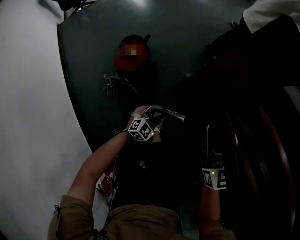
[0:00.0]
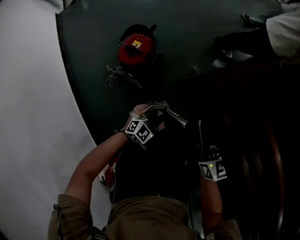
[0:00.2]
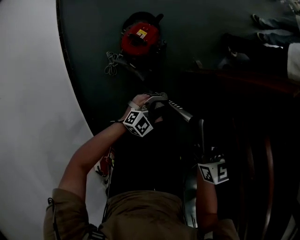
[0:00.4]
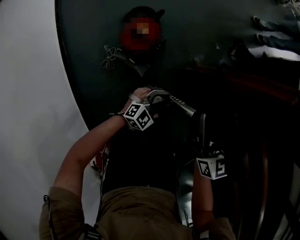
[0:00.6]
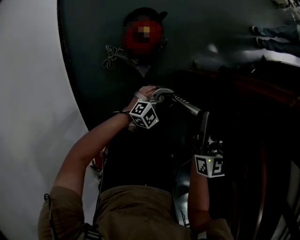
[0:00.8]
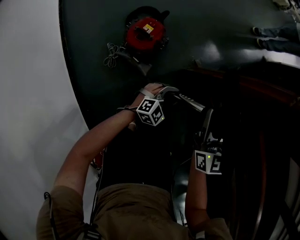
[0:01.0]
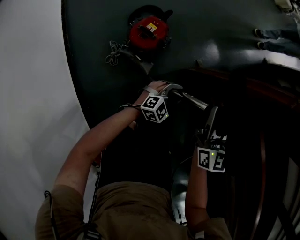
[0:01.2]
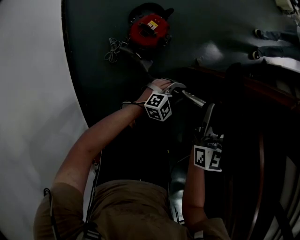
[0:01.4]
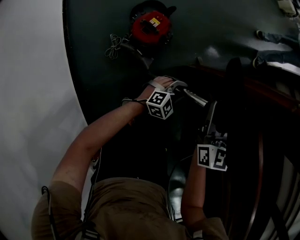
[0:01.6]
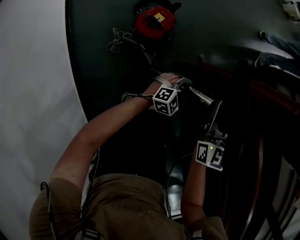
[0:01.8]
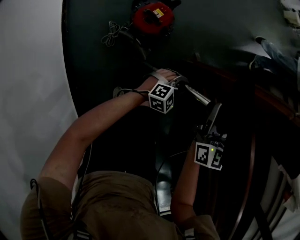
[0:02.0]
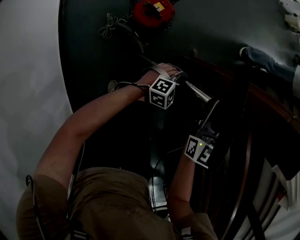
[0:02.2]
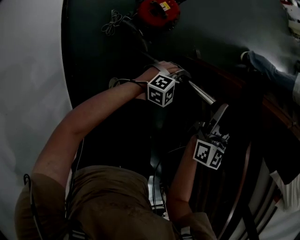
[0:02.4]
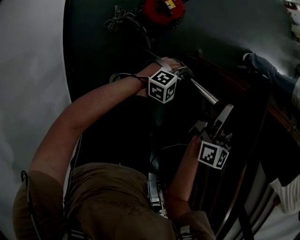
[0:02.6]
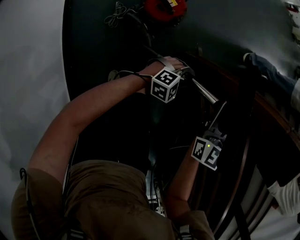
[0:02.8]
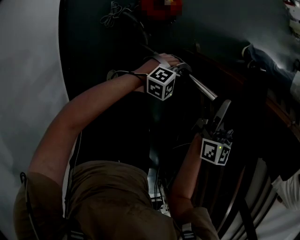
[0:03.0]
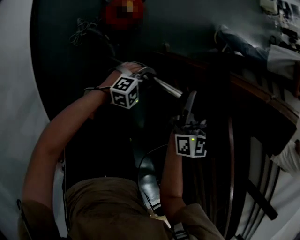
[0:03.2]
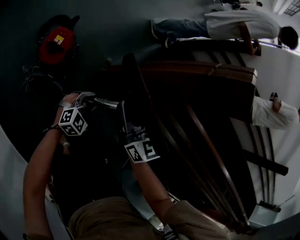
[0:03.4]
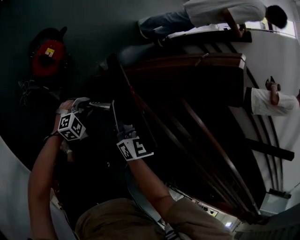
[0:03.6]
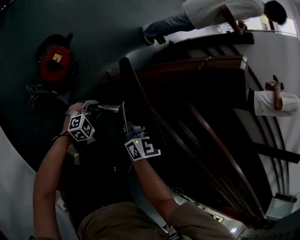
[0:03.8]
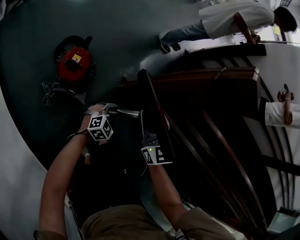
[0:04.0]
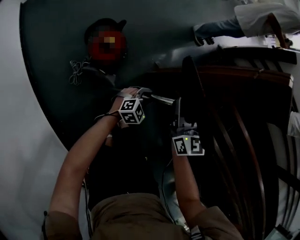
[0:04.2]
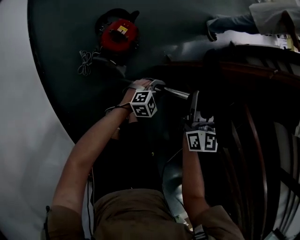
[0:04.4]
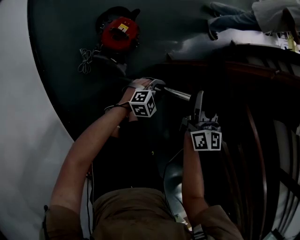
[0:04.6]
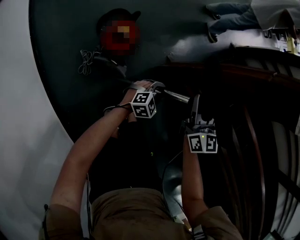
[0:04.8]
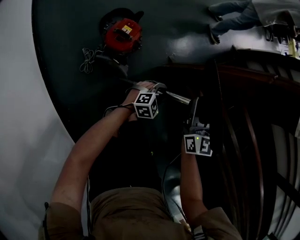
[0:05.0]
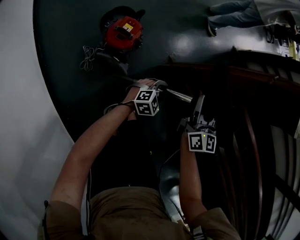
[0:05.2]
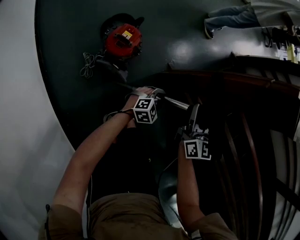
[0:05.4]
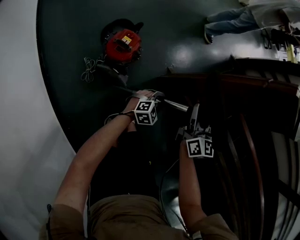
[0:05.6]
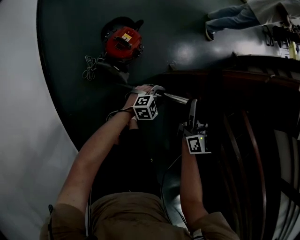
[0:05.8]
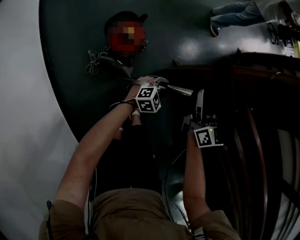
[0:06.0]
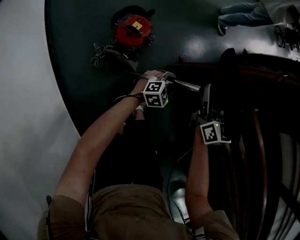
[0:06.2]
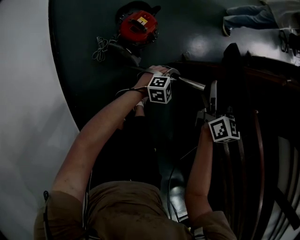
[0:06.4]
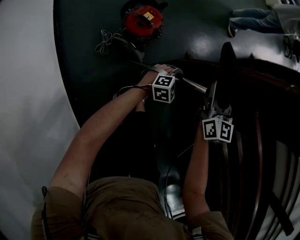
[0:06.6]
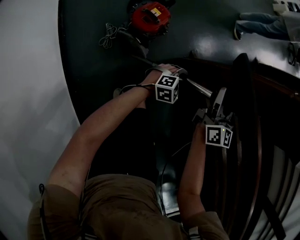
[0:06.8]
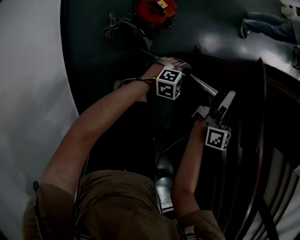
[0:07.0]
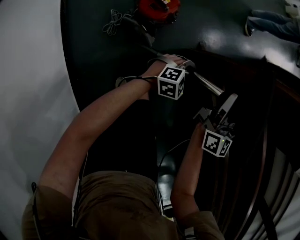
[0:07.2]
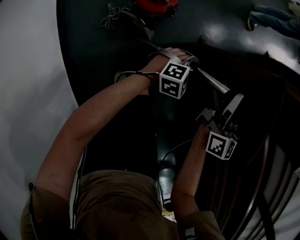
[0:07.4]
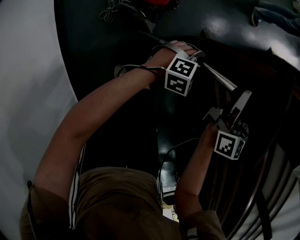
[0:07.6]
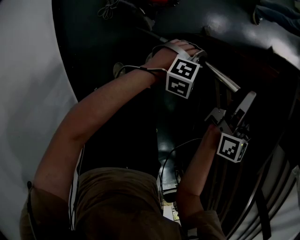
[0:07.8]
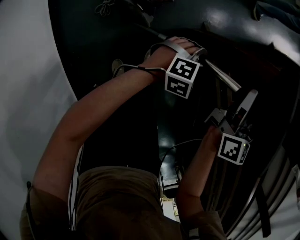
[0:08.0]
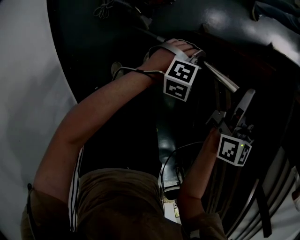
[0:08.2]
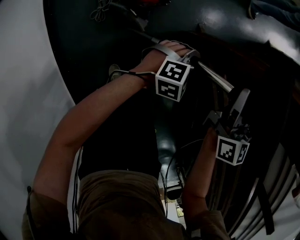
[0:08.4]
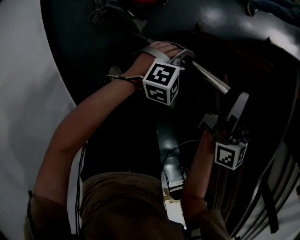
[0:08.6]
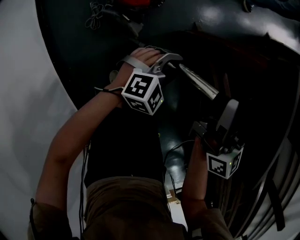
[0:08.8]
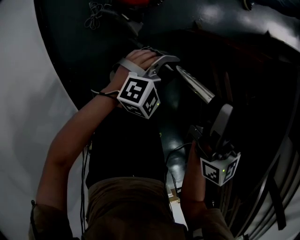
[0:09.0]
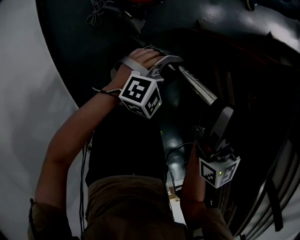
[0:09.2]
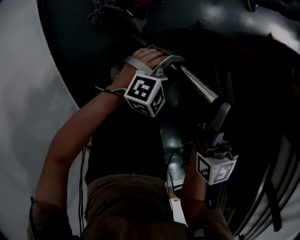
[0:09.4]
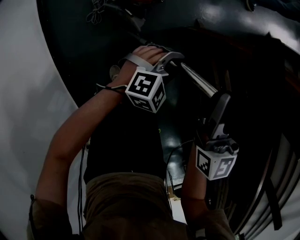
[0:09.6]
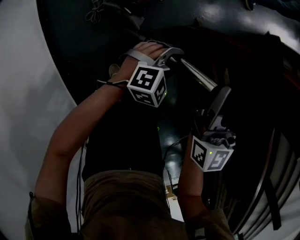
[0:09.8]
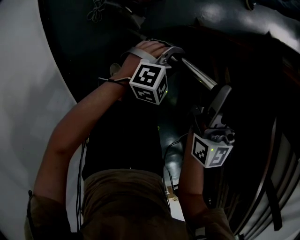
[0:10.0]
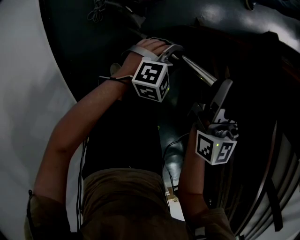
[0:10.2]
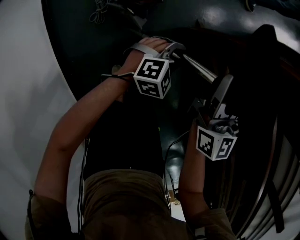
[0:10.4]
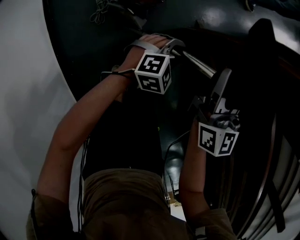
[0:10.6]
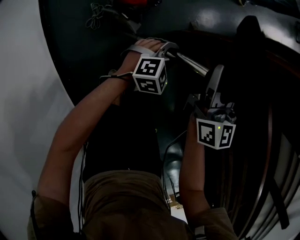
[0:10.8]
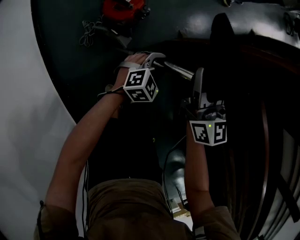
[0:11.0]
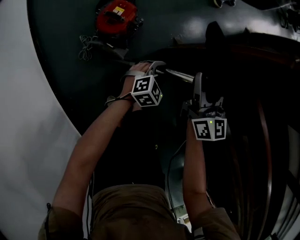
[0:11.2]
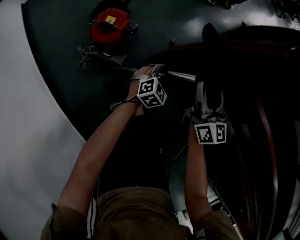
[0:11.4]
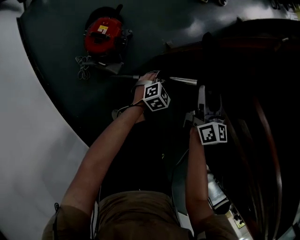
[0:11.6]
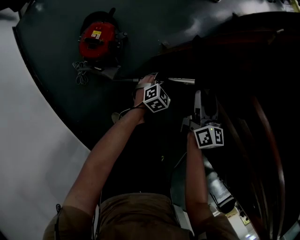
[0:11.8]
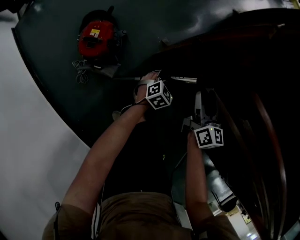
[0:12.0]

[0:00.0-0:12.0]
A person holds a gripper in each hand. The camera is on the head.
0:00.0 to 0:01.6: The right gripper heads to the left and forward, covering approximately 20 cm; the left gripper shifts some 10 cm forward and to the left.
0:01.6 to 0:06.0: The grippers stay close to where they were, moving slightly.
0:06.0 to 0:07.6: The grippers stay close to where they were, moving slightly.
0:07.6 to 0:09.0: The right gripper goes about 5 cm to the left; the left gripper shifts by some 5 cm.
0:09.0 to 0:10.4: The grippers stay close to where they were, moving slightly.
0:10.4 to 0:12.0: The right gripper moves to the right and downward, some 25 cm, turns by about 30 degrees, and opens its fingers. The left gripper goes roughly 20 cm to the right, forward and downward.

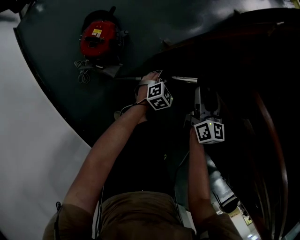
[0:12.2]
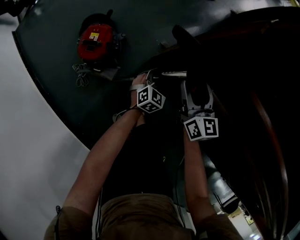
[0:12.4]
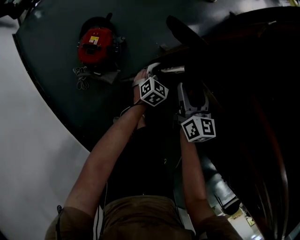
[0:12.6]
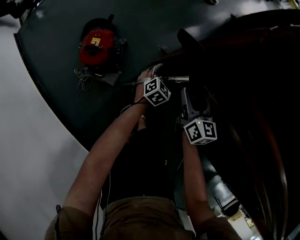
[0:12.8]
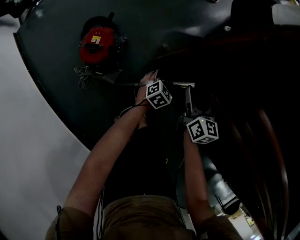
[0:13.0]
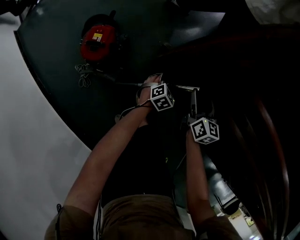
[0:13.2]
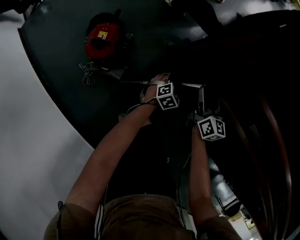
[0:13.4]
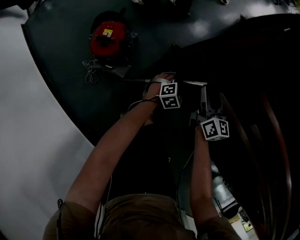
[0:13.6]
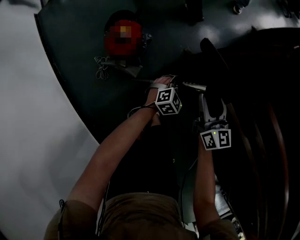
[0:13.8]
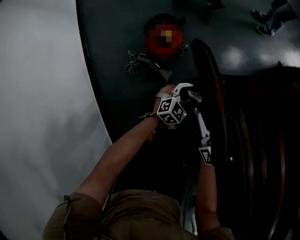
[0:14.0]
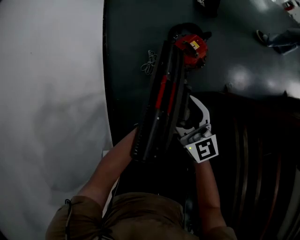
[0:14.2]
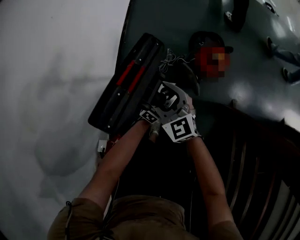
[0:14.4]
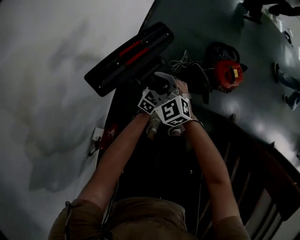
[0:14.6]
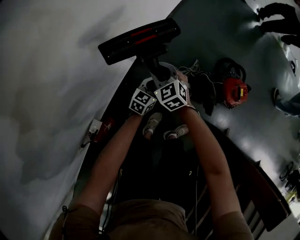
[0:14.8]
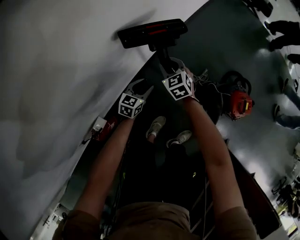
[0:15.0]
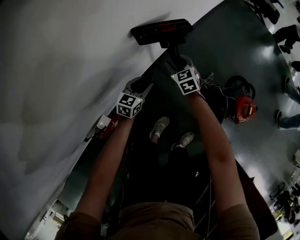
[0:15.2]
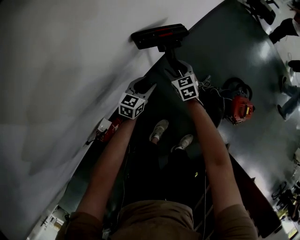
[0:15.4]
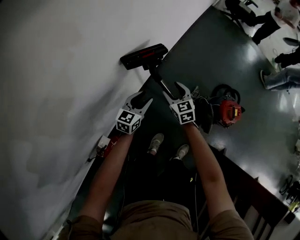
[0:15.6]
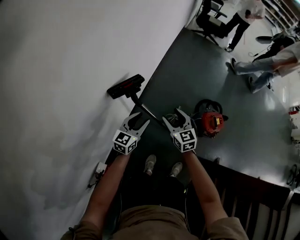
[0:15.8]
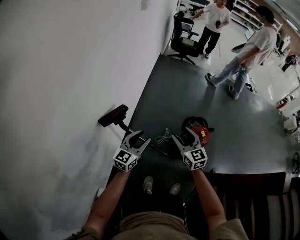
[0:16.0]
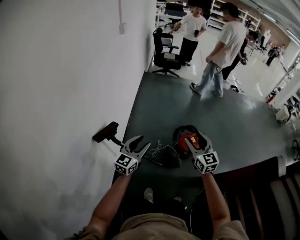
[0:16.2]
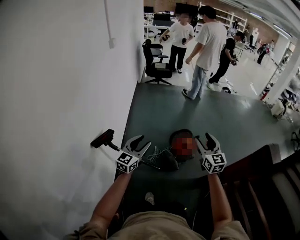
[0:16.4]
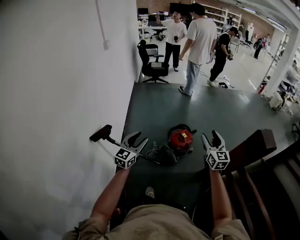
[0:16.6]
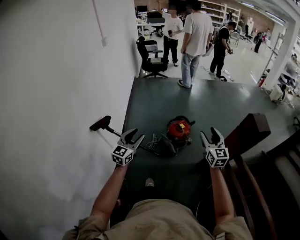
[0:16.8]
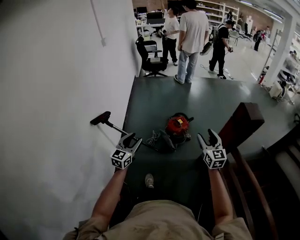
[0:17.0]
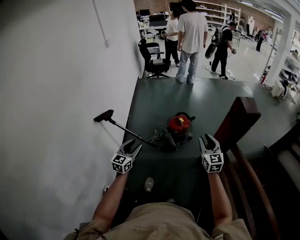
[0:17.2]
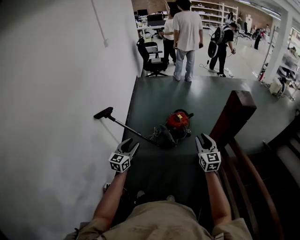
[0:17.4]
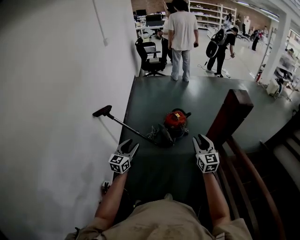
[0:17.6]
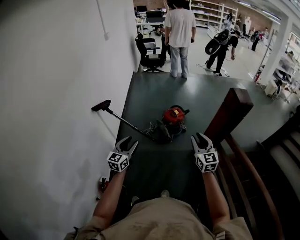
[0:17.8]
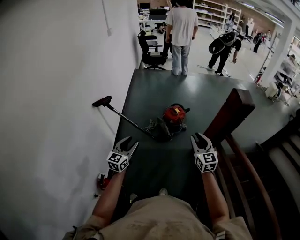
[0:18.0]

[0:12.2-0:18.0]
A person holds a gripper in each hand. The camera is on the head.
0:12.2 to 0:13.6: The left gripper travels to the left and back again, about 5 cm each way, and opens, then closes once more.
0:13.6 to 0:15.0: Both grippers are carried about 1 m. The right gripper turns by some 120 degrees, and closes its fingers. The left gripper changes its angle by about 120 degrees.
0:15.0 to 0:16.6: The right gripper changes place by some 90 cm, tilts its fingers about 40 degrees upward, and opens up. Meanwhile the left gripper heads upward, covering roughly 60 cm, and changes its angle by some 50 degrees.
0:16.6 to 0:18.0: The two grippers go roughly 35 cm backward. The right gripper closes up.

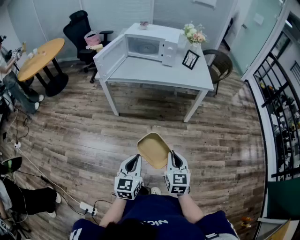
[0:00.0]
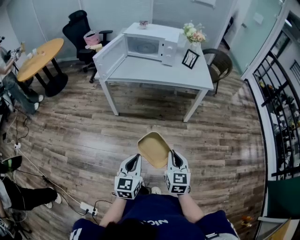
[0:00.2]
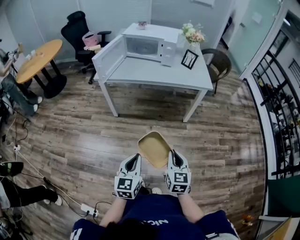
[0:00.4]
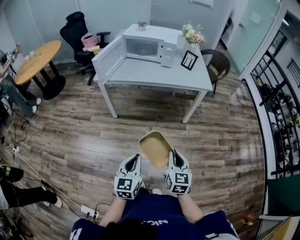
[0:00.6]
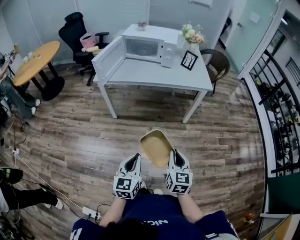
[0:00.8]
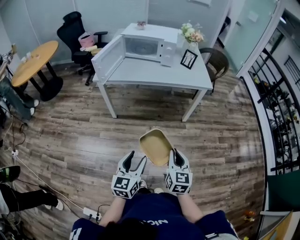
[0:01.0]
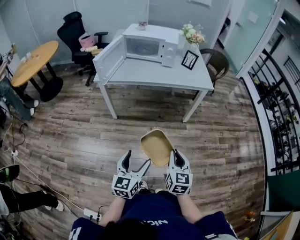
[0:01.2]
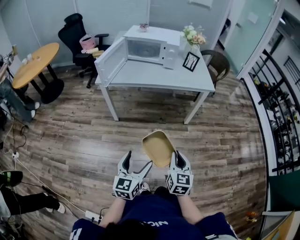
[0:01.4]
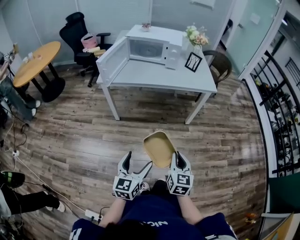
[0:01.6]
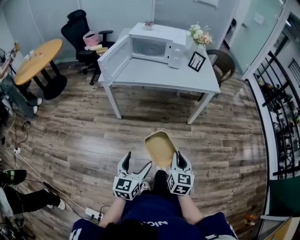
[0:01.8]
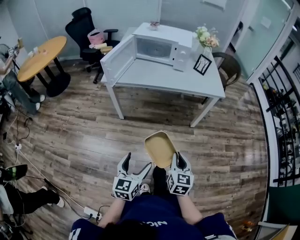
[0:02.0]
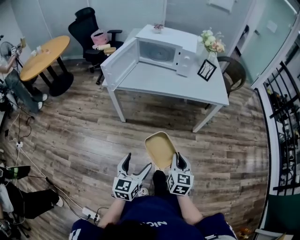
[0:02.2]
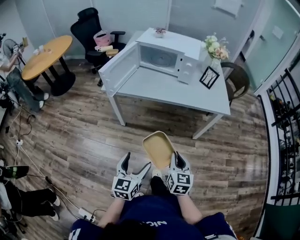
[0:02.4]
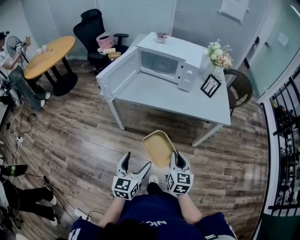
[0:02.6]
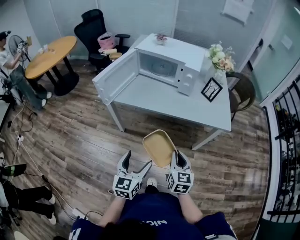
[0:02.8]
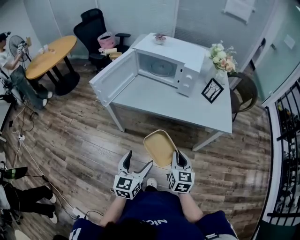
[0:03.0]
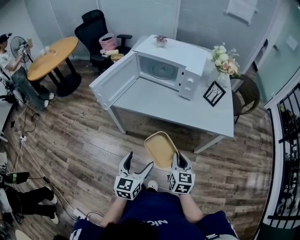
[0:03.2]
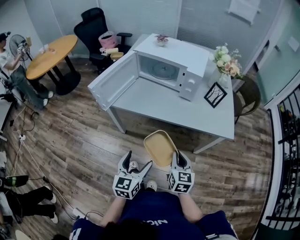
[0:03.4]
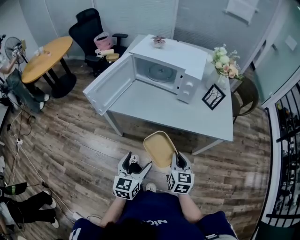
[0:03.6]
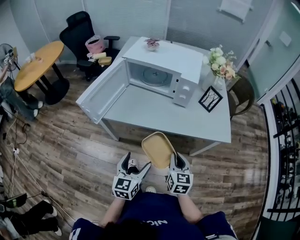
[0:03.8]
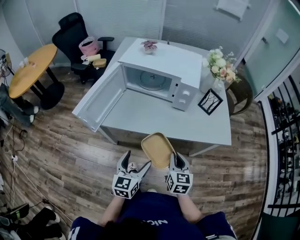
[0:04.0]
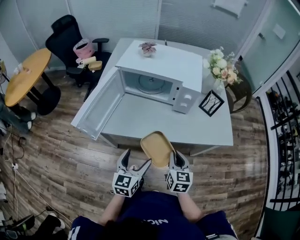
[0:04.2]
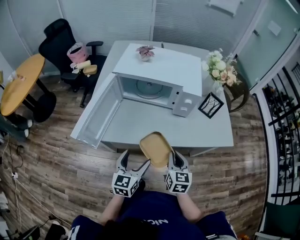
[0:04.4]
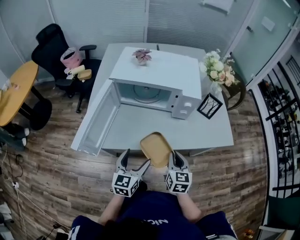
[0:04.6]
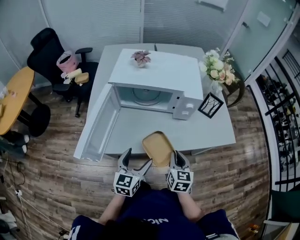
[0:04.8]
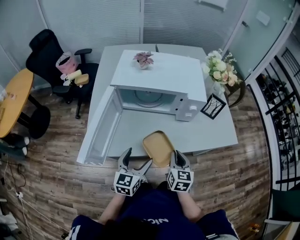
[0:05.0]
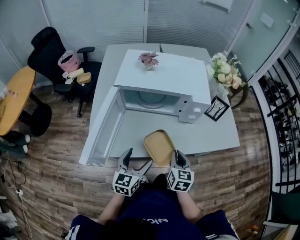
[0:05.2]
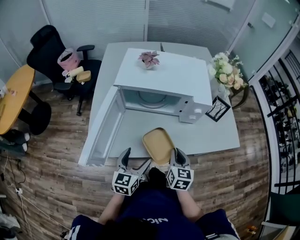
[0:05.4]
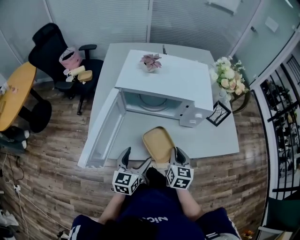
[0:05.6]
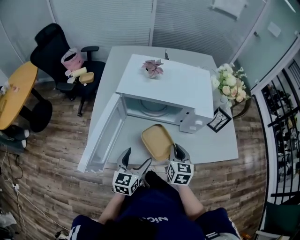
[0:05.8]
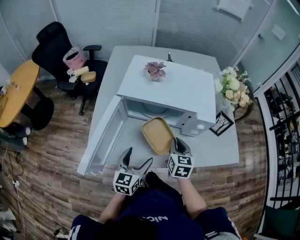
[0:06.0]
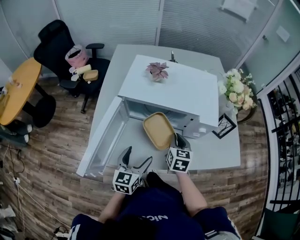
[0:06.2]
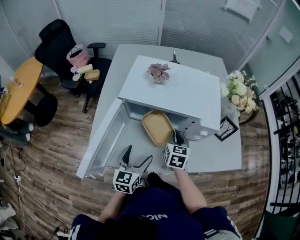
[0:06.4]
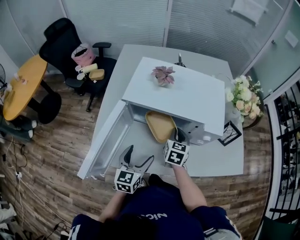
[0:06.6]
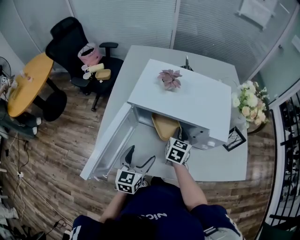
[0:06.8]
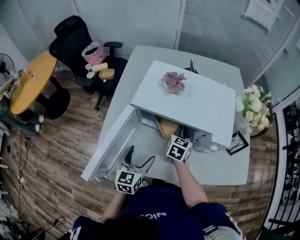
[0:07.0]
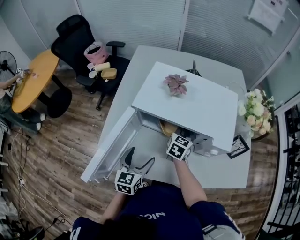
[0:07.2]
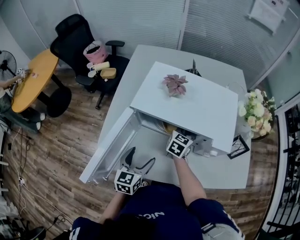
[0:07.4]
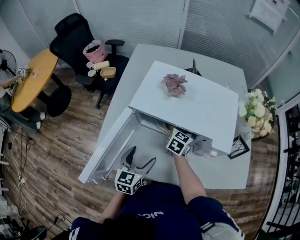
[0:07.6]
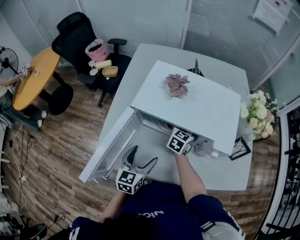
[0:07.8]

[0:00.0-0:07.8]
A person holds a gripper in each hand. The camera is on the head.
0:00.0 to 0:01.6: The left gripper heads to the left, covering roughly 5 cm, and opens up.
0:01.6 to 0:03.2: Both grippers travel together forward, roughly 30 cm.
0:03.2 to 0:04.6: The left gripper shifts roughly 25 cm forward, while the right gripper is displaced forward and to the left by approximately 20 cm.
0:04.6 to 0:06.2: The right gripper travels forward and to the left by some 20 cm; the left gripper travels forward and to the left by approximately 15 cm.
0:06.2 to 0:07.8: The right gripper travels forward by some 15 cm. The left gripper shifts approximately 5 cm forward.
